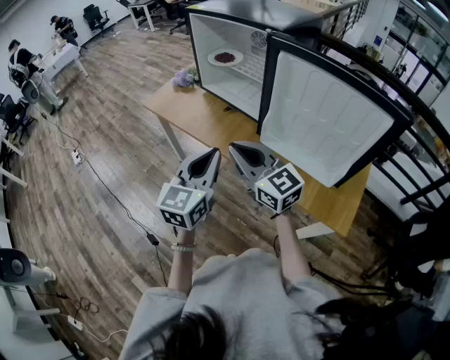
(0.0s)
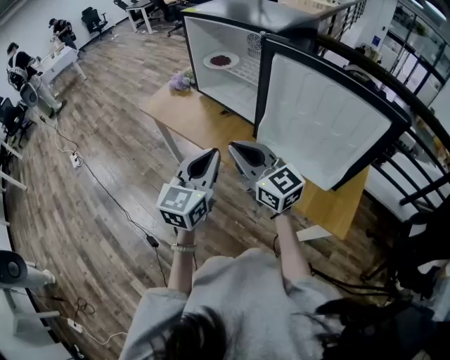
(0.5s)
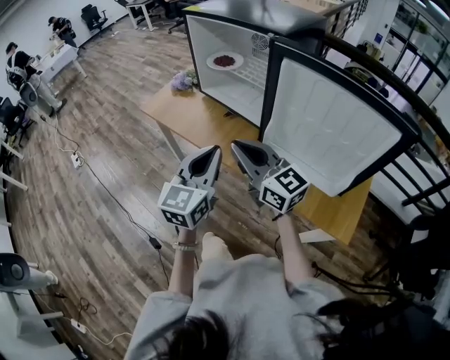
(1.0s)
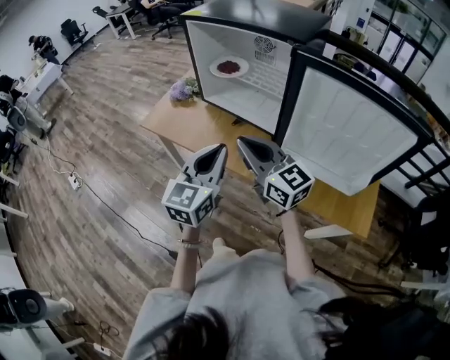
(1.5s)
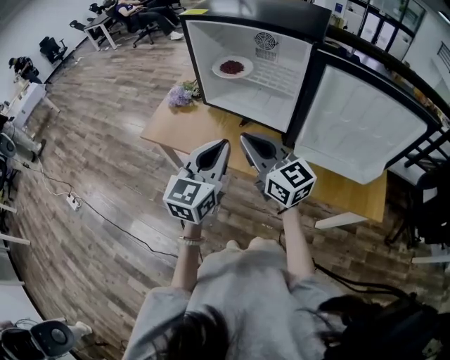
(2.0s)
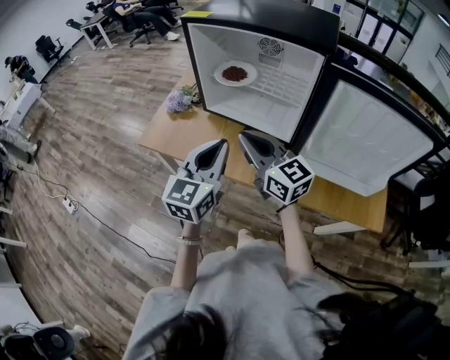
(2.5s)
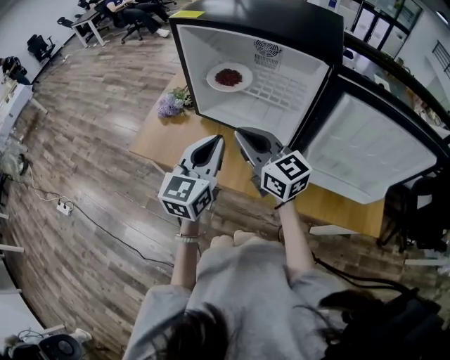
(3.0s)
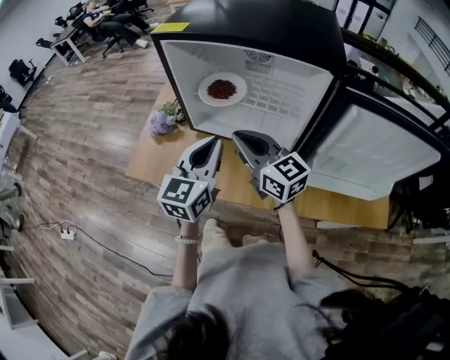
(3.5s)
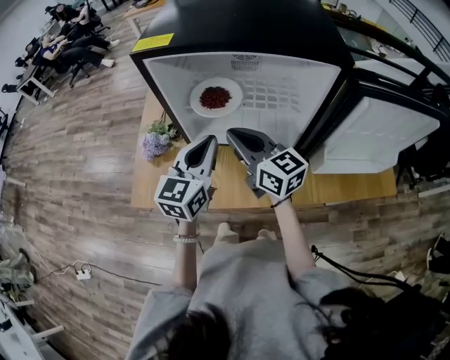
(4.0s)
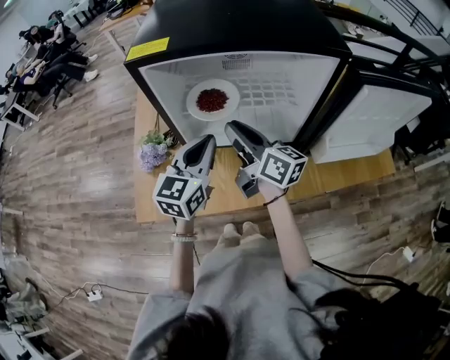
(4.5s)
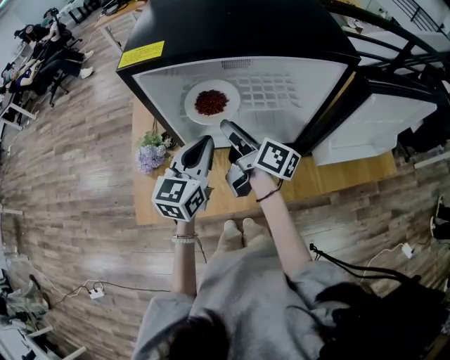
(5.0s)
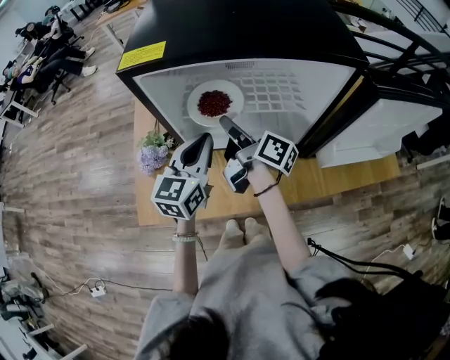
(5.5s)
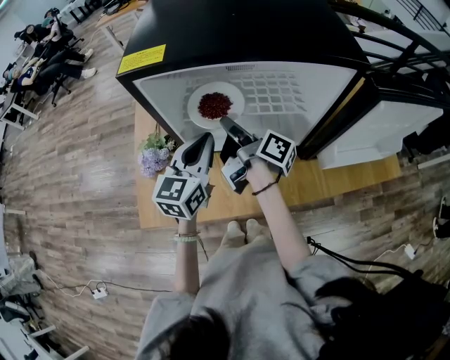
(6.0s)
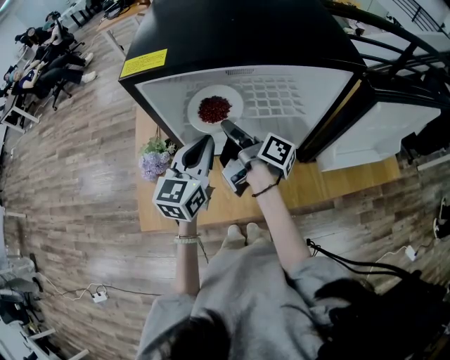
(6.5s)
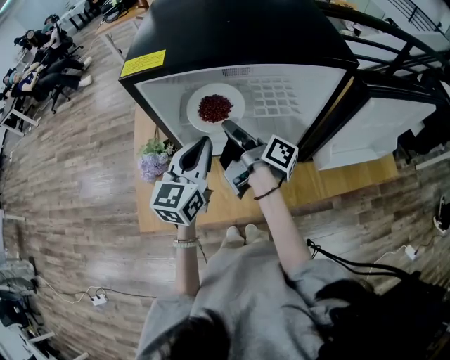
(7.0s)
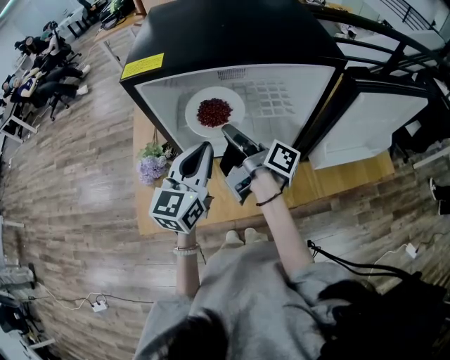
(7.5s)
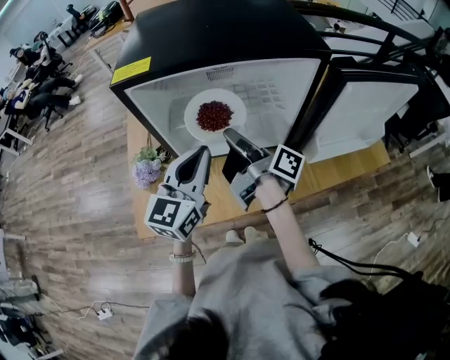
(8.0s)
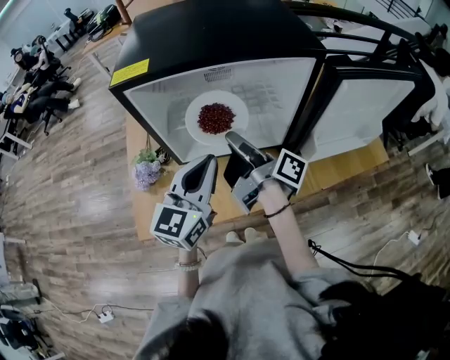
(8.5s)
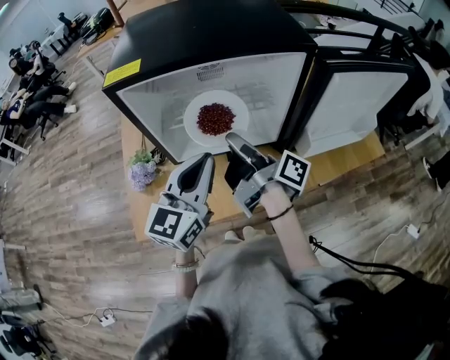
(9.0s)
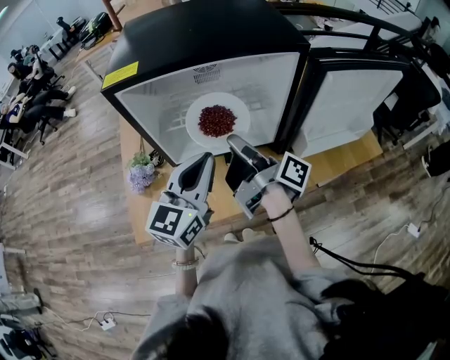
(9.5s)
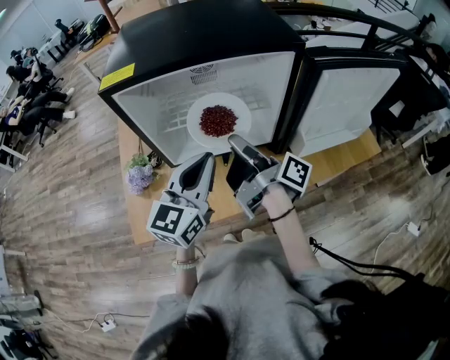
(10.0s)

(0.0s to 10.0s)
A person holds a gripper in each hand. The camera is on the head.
0.0s - 2.0s: Both grippers move forward and to the left, roughly 15 cm.
2.0s - 4.0s: The grippers both shift forward by about 20 cm. The right gripper rotates approximately 20 degrees.
4.0s - 6.0s: The right gripper travels forward and downward by roughly 10 cm, rotates around the line of its fingers by about 70 degrees, clockwise from behind, and opens, then closes again. The left gripper travels forward by approximately 5 cm.
6.0s - 8.0s: The left gripper moves backward and upward, about 10 cm. The right gripper heads backward, covering approximately 5 cm.
8.0s - 10.0s: The right gripper shifts by approximately 5 cm.

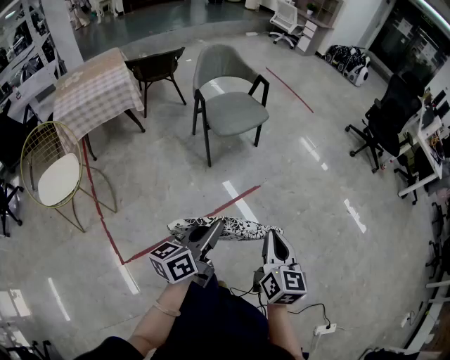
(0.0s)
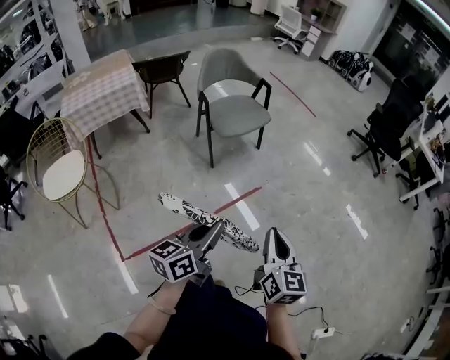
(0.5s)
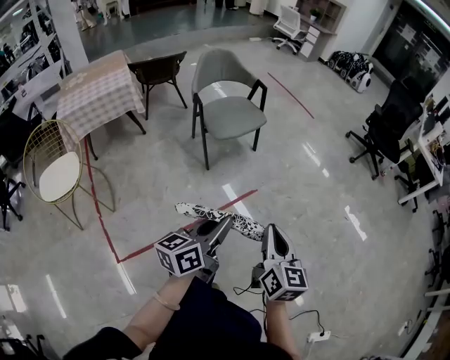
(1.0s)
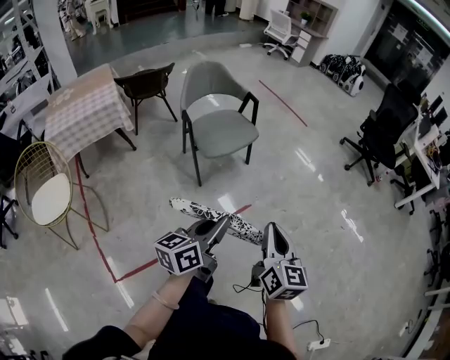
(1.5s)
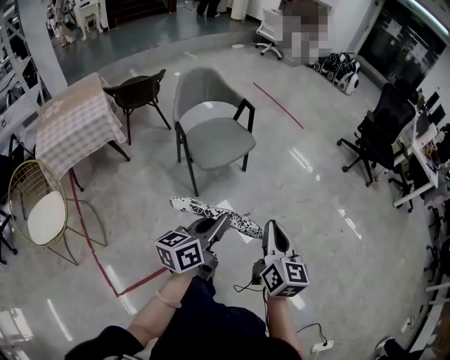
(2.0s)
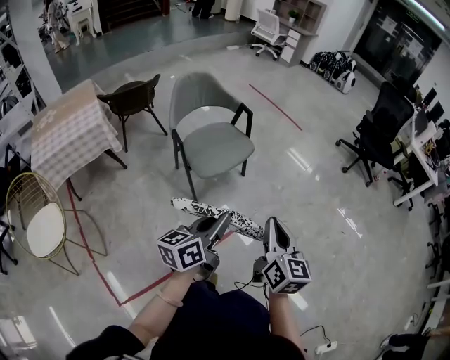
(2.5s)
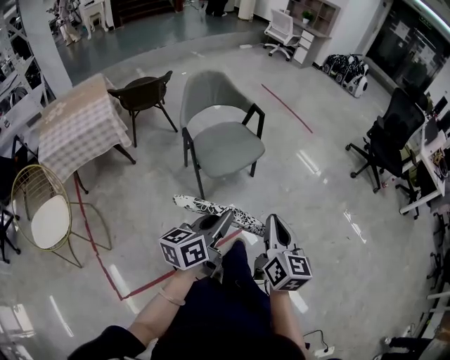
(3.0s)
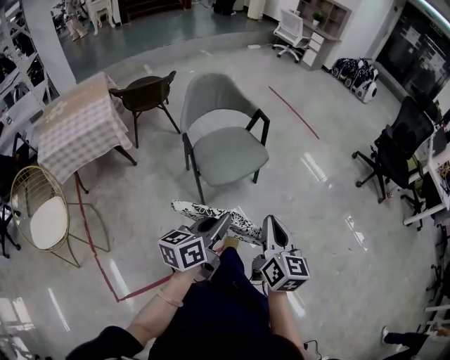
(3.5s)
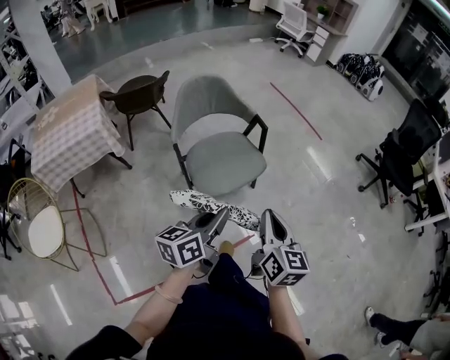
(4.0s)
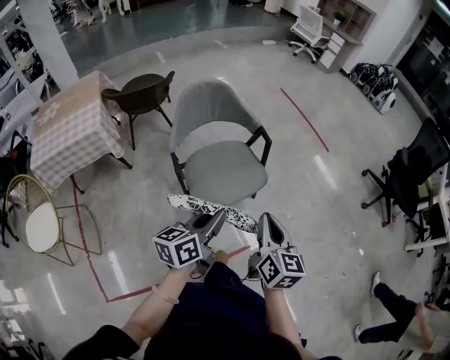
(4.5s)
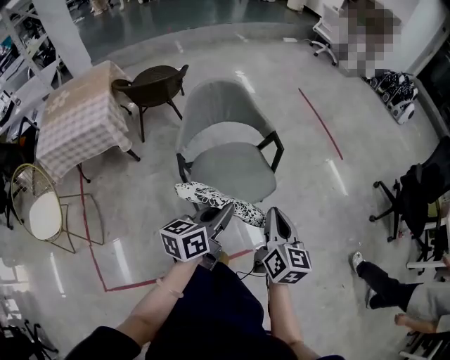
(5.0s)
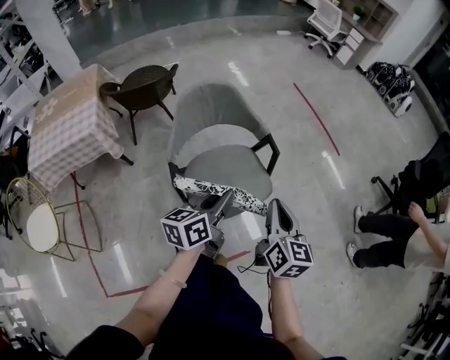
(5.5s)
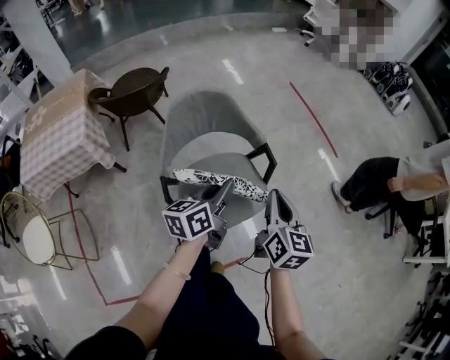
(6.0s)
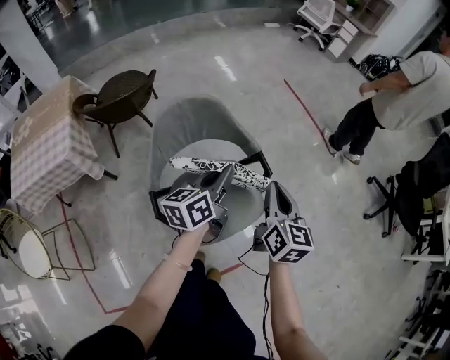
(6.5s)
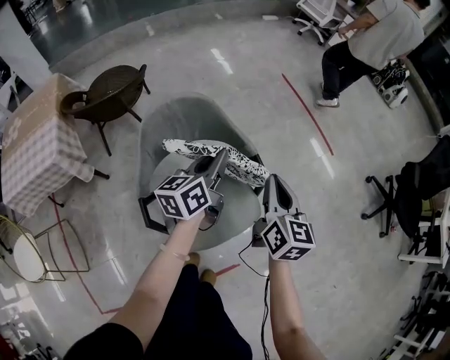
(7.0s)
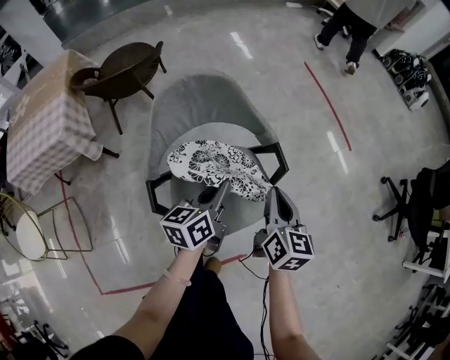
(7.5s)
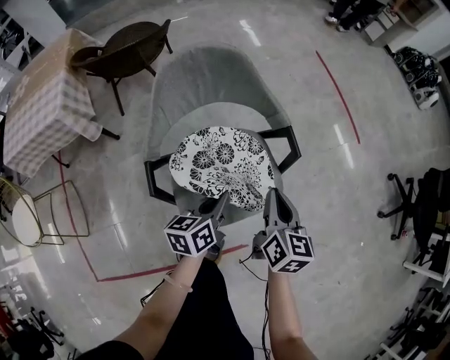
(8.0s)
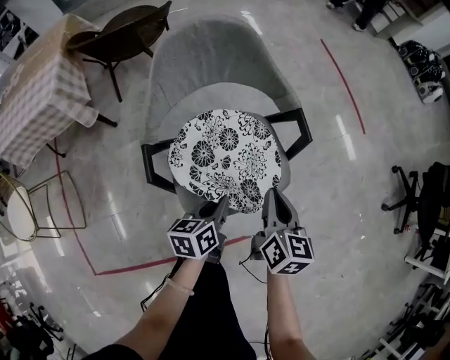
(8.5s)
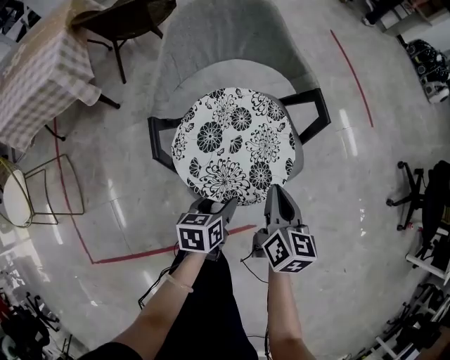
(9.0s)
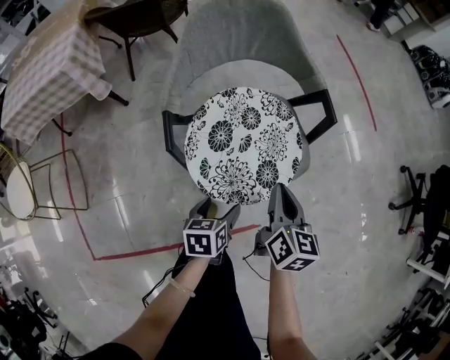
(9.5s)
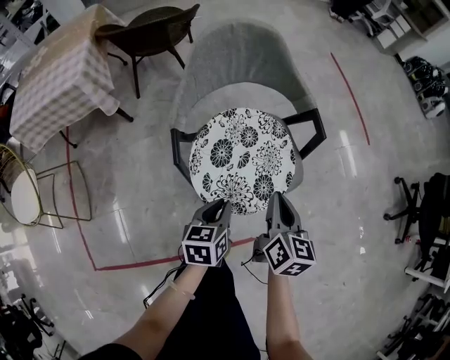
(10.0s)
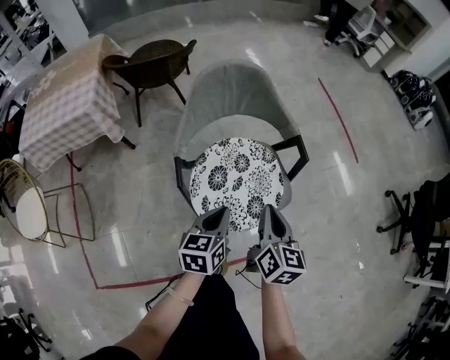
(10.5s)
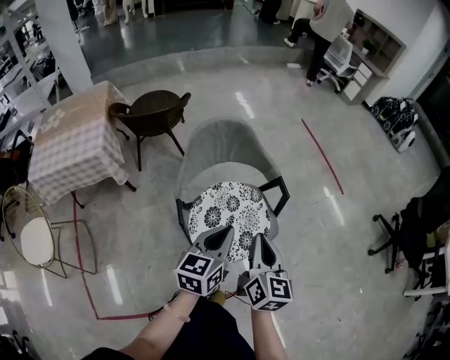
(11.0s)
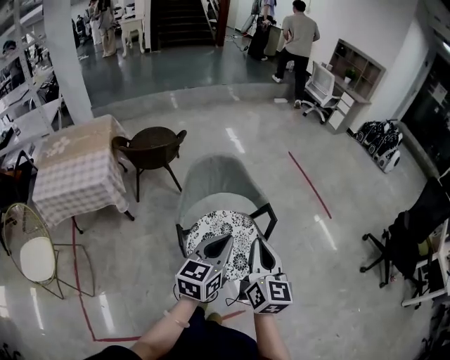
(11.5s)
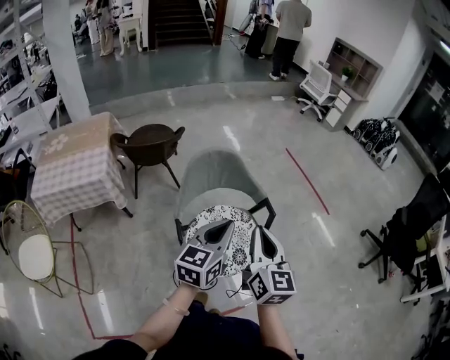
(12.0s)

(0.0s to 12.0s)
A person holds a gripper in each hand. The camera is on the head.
0.0s - 2.0s: The grippers both shift forward by some 20 cm.
2.0s - 4.0s: Both grippers travel together forward, about 20 cm.
4.0s - 6.0s: The two grippers go roughly 30 cm forward.
6.0s - 8.0s: The two grippers go roughly 15 cm downward.
8.0s - 10.0s: The two grippers go roughly 10 cm backward. The left gripper opens and closes again.
10.0s - 12.0s: Both grippers move upward, roughly 30 cm. The right gripper rotates about 30 degrees. The left gripper angles its fingers upward, by approximately 30 degrees.

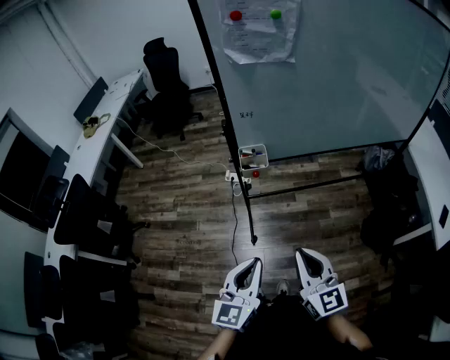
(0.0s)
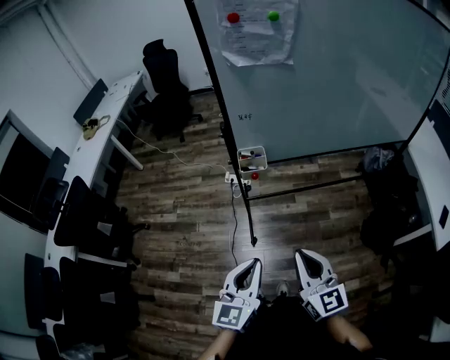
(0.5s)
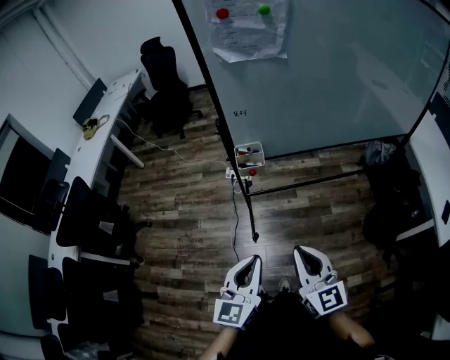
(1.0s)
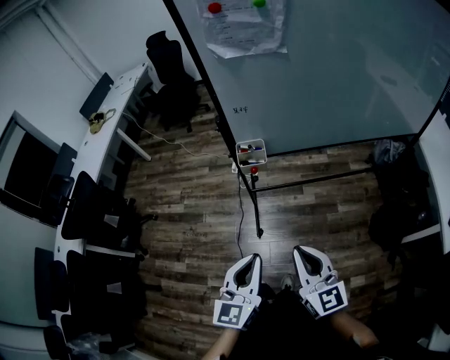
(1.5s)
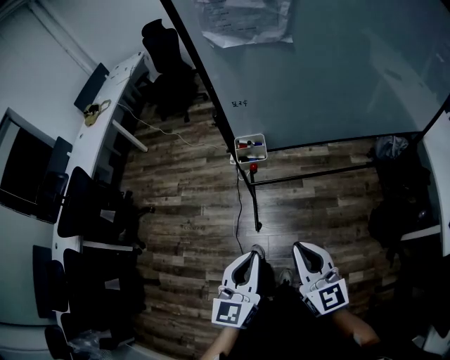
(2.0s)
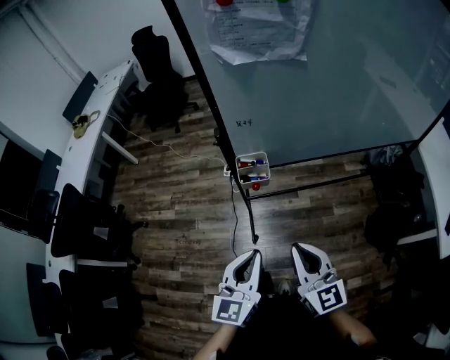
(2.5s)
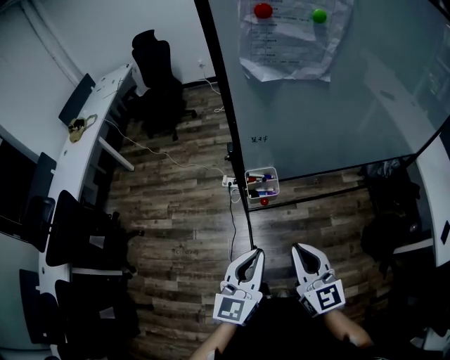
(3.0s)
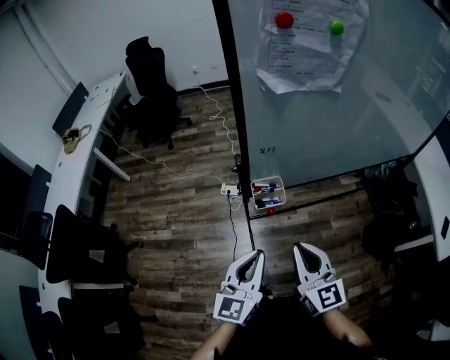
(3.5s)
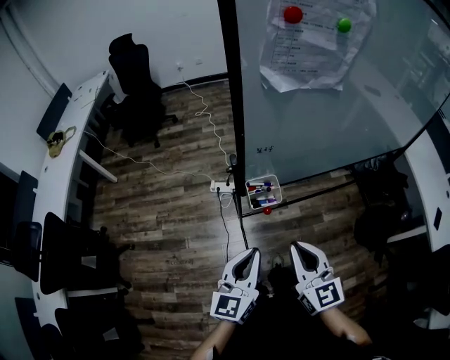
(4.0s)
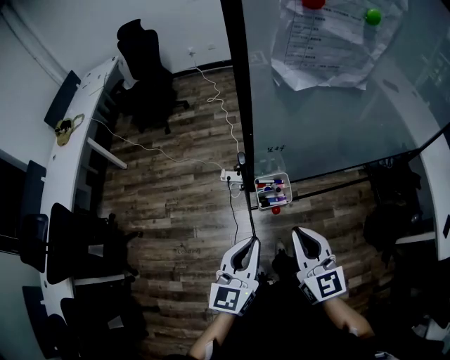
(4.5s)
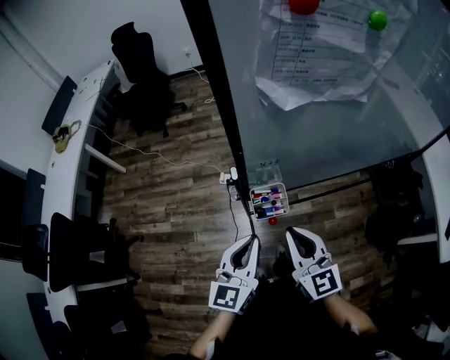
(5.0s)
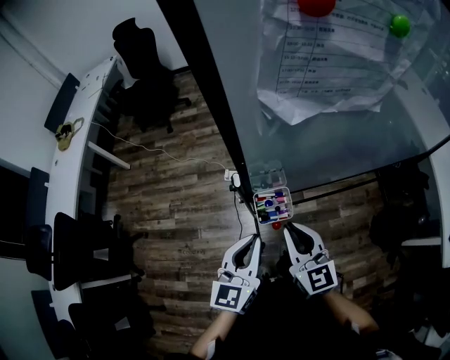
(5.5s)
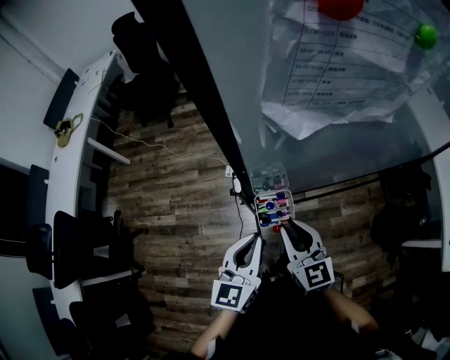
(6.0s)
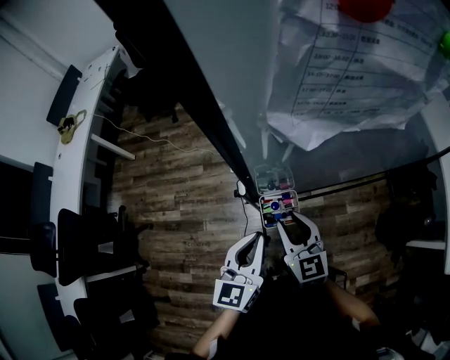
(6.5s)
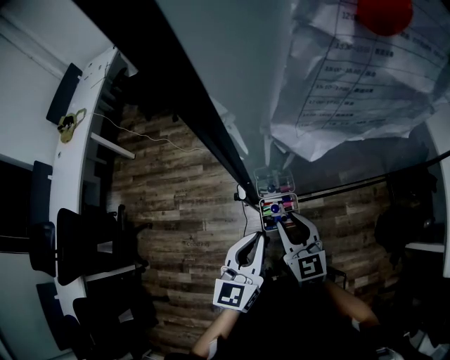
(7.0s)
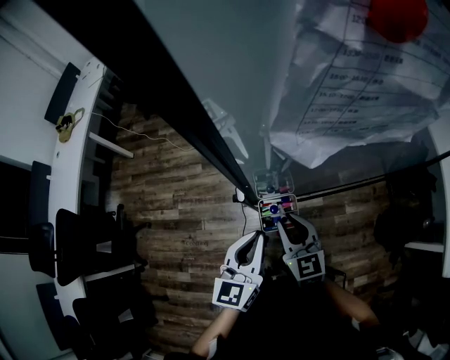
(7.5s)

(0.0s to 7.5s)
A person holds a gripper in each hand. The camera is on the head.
0.0s - 2.0s: The left gripper ends up roughly 5 cm from where it was. The right gripper ends up approximately 5 cm from where it was.
2.0s - 4.0s: The two grippers go some 20 cm forward and to the left.
4.0s - 5.5s: Both grippers travel together forward, some 10 cm.
5.5s - 7.5s: The right gripper is displaced downward and forward by some 10 cm.
